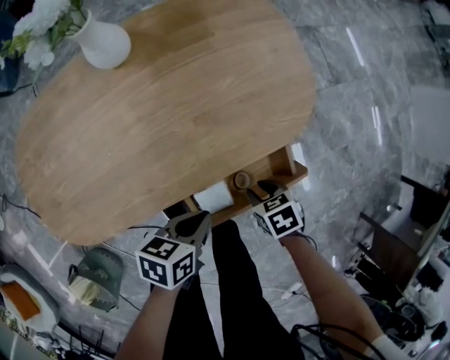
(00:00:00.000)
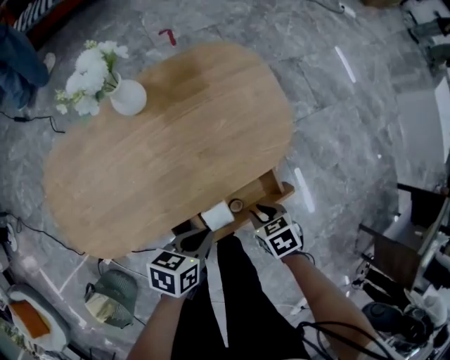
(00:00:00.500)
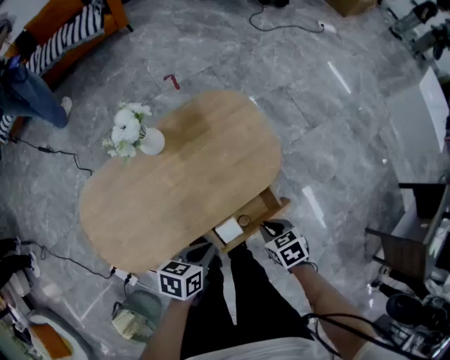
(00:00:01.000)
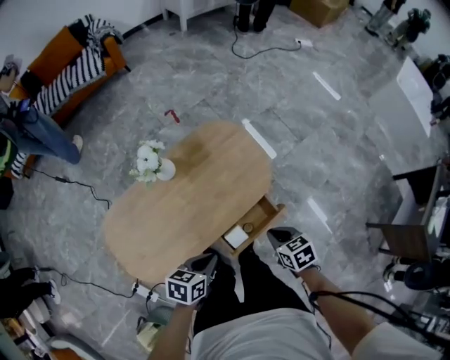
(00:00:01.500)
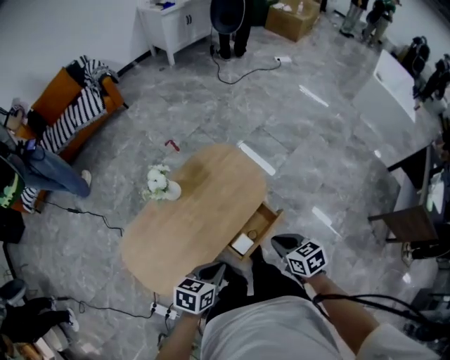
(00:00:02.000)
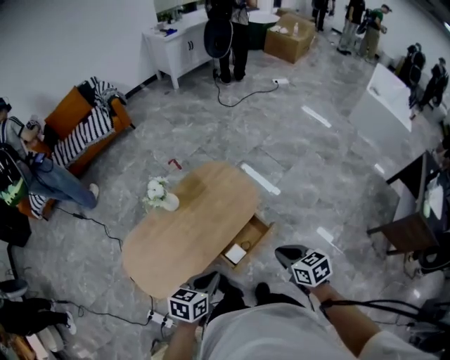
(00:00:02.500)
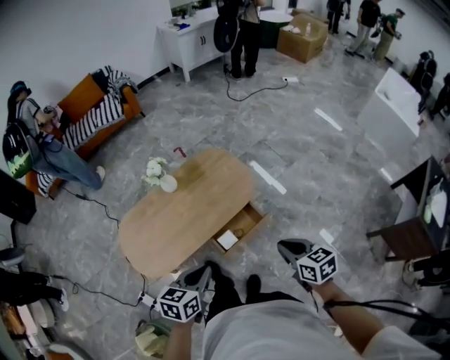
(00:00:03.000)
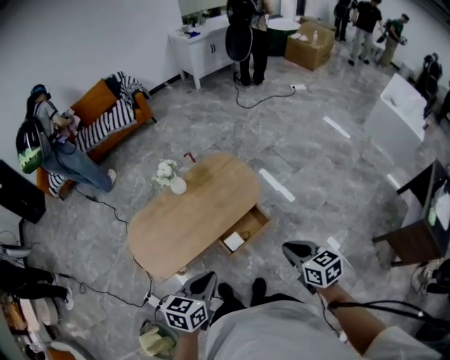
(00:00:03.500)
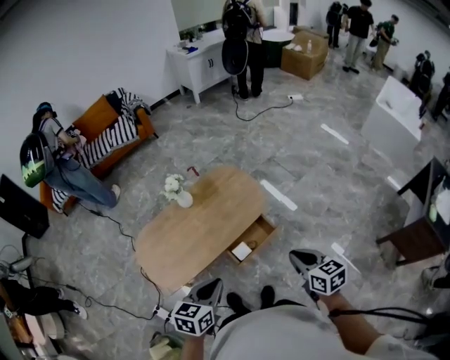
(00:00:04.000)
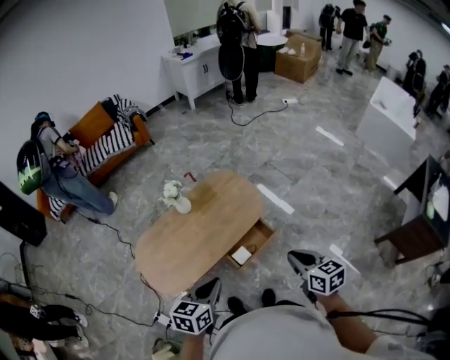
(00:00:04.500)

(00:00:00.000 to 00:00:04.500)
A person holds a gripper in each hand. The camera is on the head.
00:00:00.000 - 00:00:02.000: Both grippers move upward, about 40 cm. The right gripper swivels about 40 degrees, and closes up; the left gripper turns by roughly 30 degrees.
00:00:02.000 - 00:00:04.500: The right gripper moves upward, backward and to the right, about 20 cm. Meanwhile the left gripper travels backward and upward by roughly 20 cm, and turns by roughly 20 degrees.

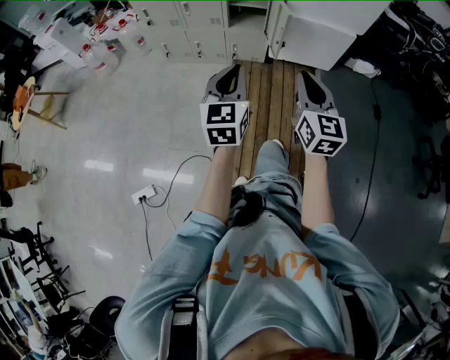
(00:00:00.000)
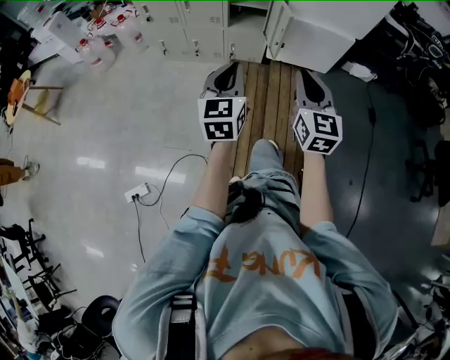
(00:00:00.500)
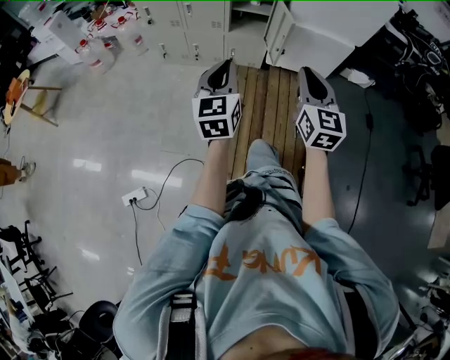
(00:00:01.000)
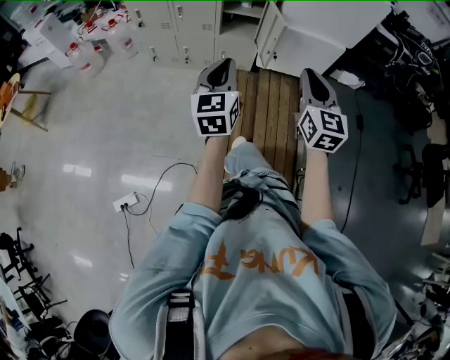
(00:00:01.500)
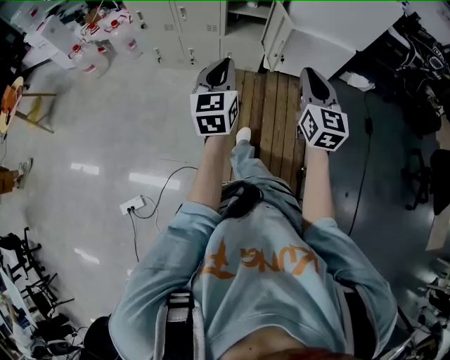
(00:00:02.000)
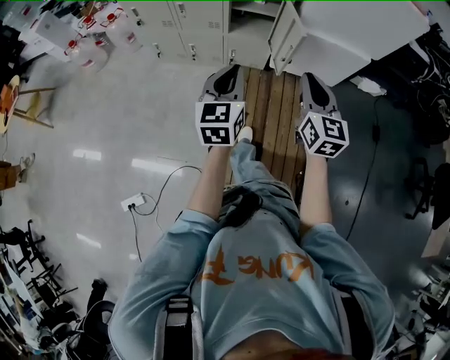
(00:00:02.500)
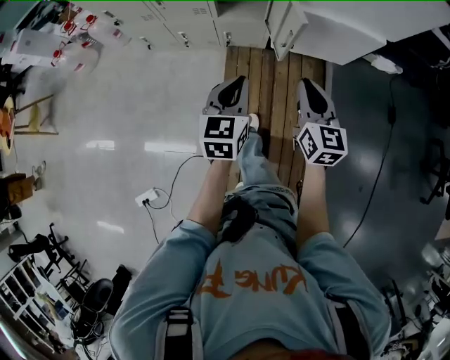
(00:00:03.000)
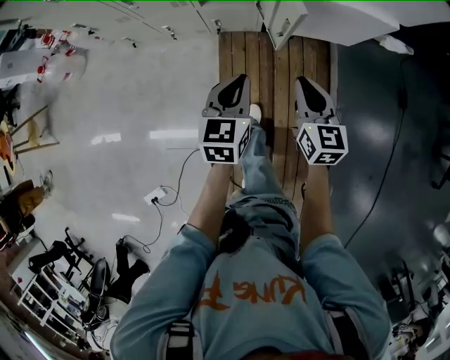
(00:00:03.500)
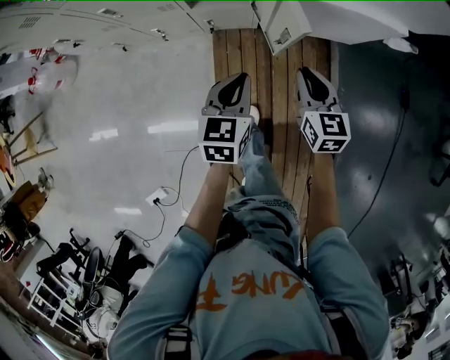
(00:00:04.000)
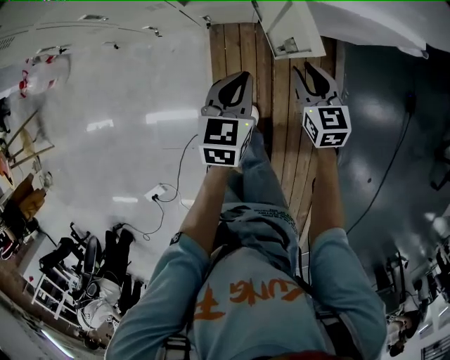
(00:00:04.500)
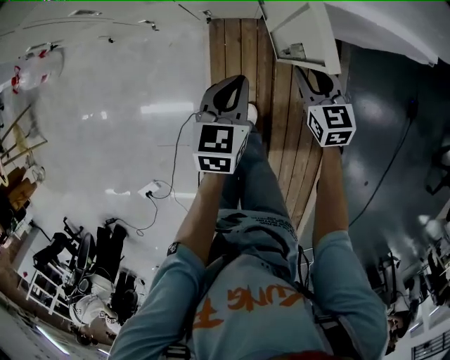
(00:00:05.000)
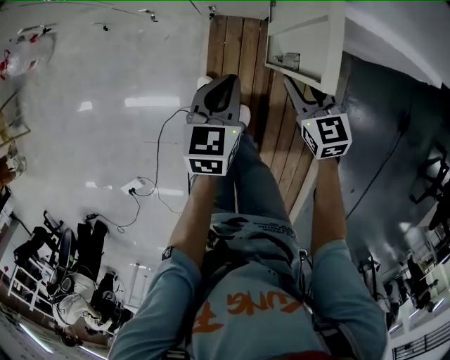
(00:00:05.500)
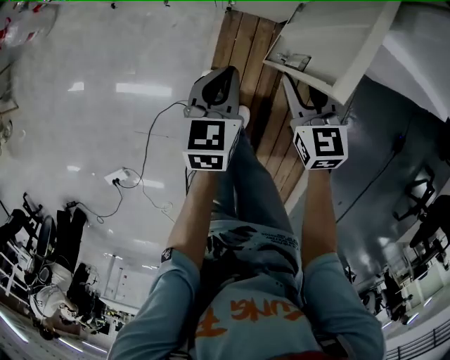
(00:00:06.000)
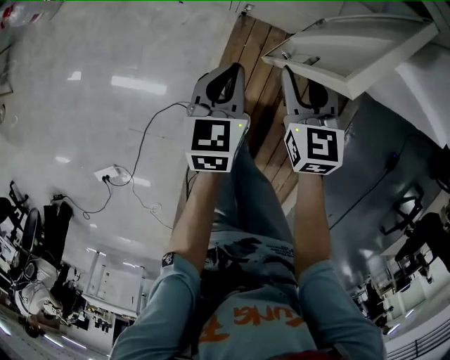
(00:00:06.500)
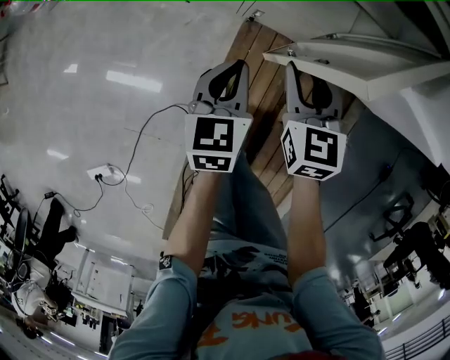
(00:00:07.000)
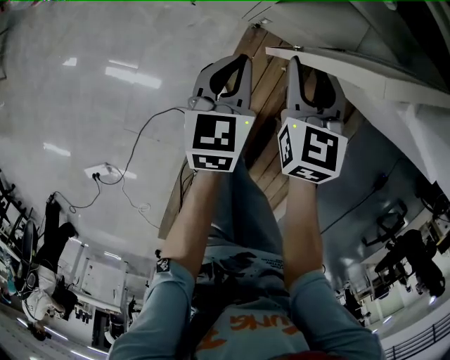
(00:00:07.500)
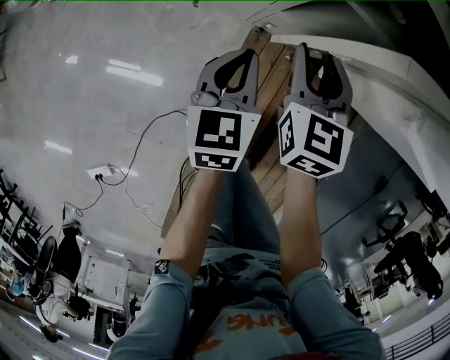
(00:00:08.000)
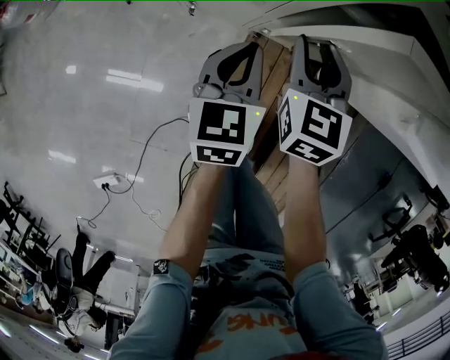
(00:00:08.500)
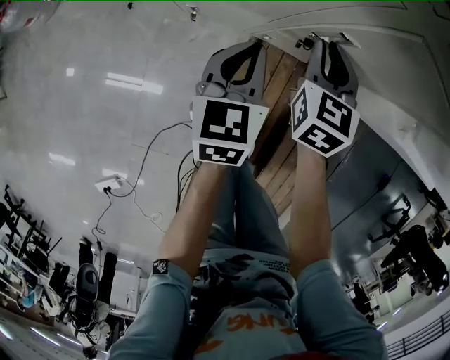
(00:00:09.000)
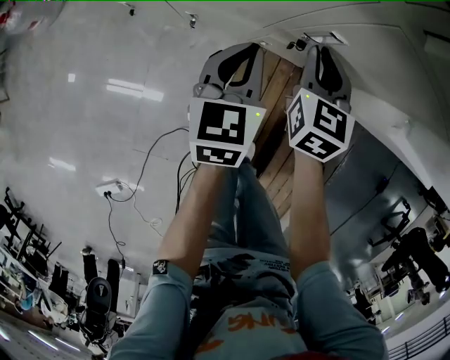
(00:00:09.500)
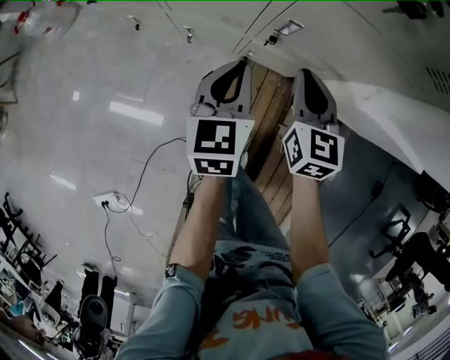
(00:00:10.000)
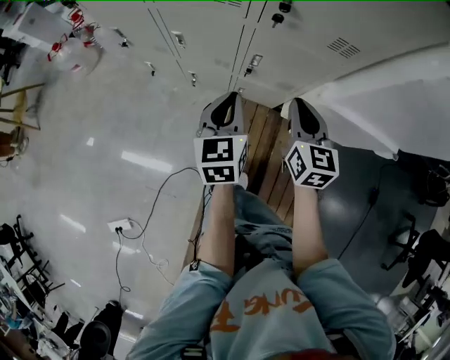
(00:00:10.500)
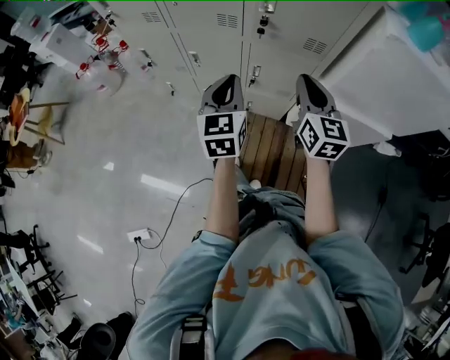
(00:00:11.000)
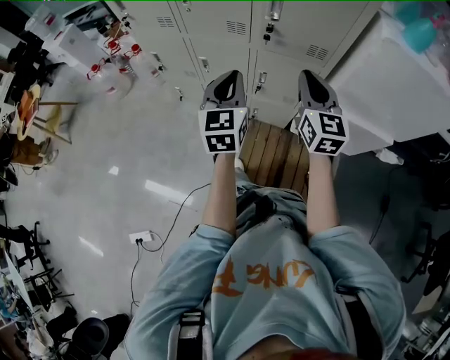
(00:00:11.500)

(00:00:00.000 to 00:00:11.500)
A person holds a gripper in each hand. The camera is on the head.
00:00:00.000 - 00:00:02.000: The left gripper heads forward and to the left, covering about 10 cm. The right gripper goes about 10 cm forward.
00:00:02.000 - 00:00:04.000: Both grippers travel together forward and downward, about 40 cm. The right gripper changes its angle by some 30 degrees. The left gripper swivels about 30 degrees.
00:00:04.000 - 00:00:06.000: The left gripper travels downward, to the left and forward by some 20 cm; the right gripper goes roughly 20 cm to the left, downward and forward, rotates some 20 degrees, and opens.
00:00:06.000 - 00:00:07.500: Both grippers travel together forward and to the left, some 15 cm.
00:00:07.500 - 00:00:09.500: Both grippers move forward, roughly 10 cm. The right gripper closes.
00:00:09.500 - 00:00:11.500: Both grippers move upward and backward, approximately 50 cm. The left gripper swivels roughly 30 degrees. The right gripper tilts its fingers about 30 degrees upward.

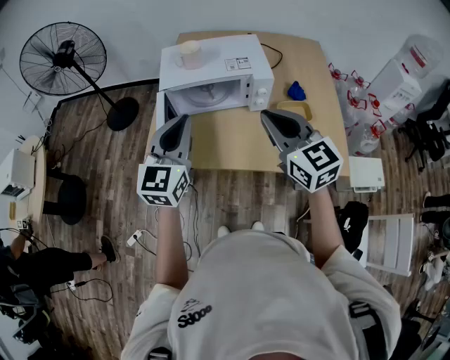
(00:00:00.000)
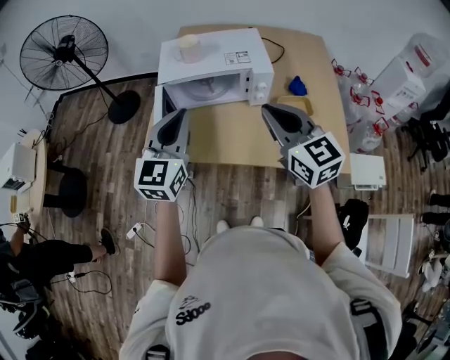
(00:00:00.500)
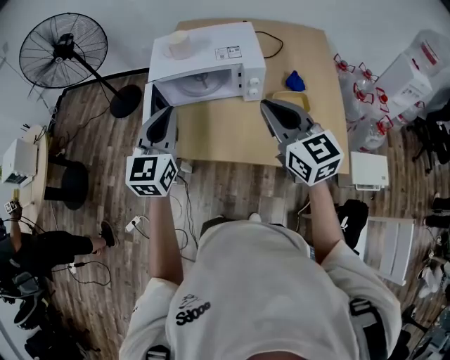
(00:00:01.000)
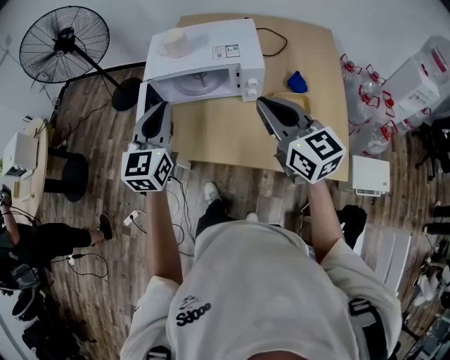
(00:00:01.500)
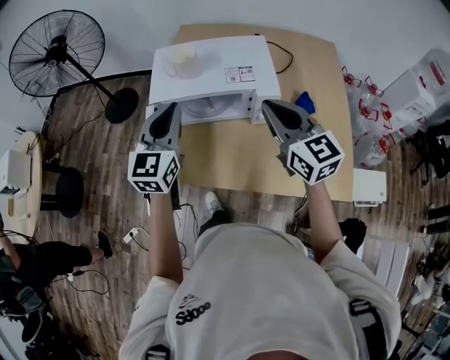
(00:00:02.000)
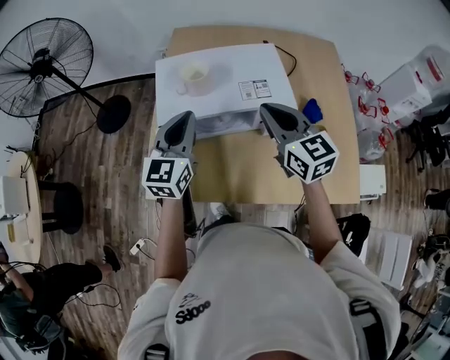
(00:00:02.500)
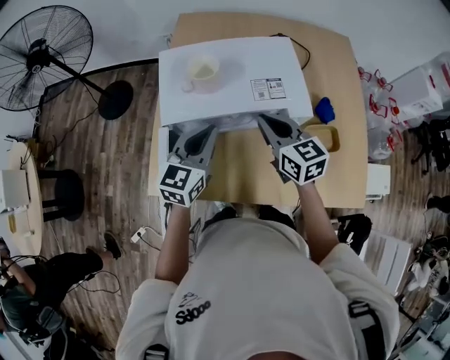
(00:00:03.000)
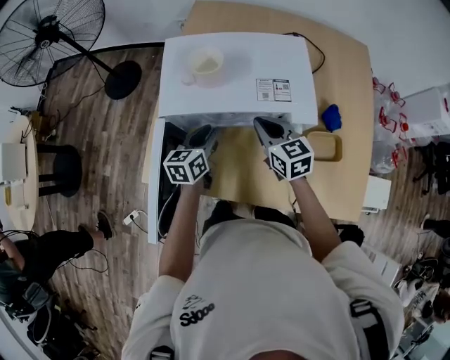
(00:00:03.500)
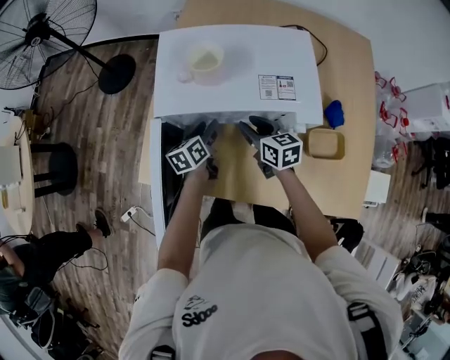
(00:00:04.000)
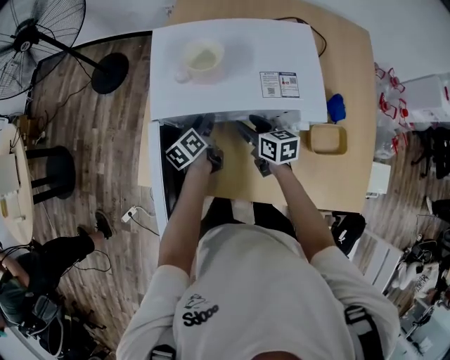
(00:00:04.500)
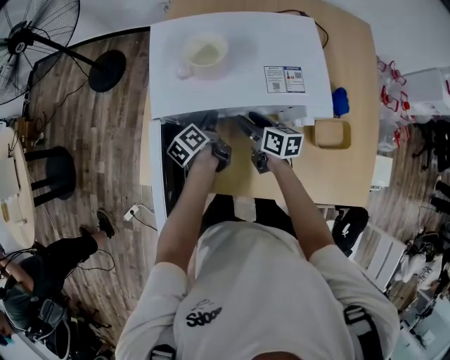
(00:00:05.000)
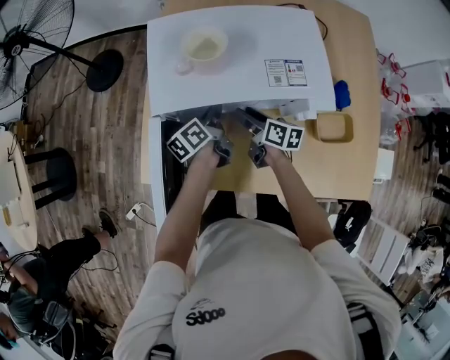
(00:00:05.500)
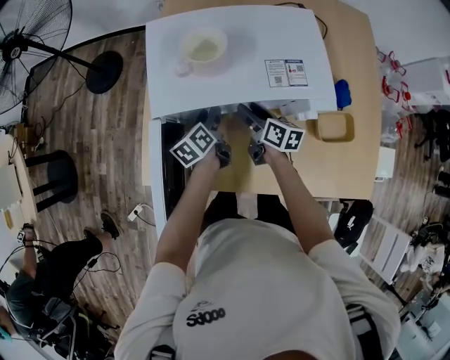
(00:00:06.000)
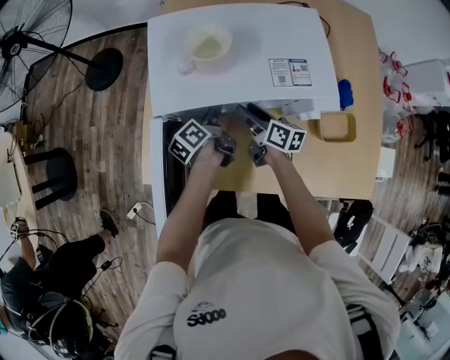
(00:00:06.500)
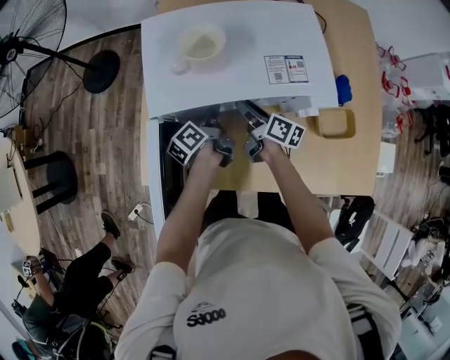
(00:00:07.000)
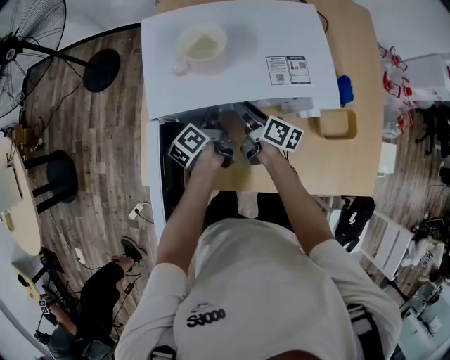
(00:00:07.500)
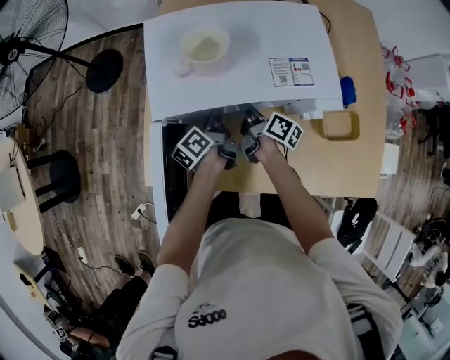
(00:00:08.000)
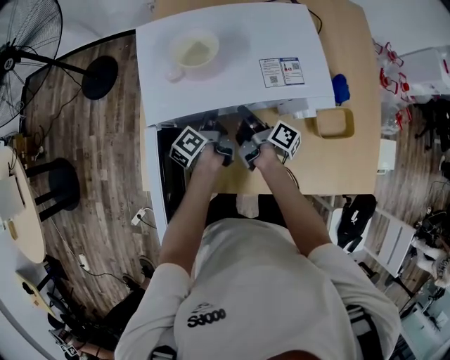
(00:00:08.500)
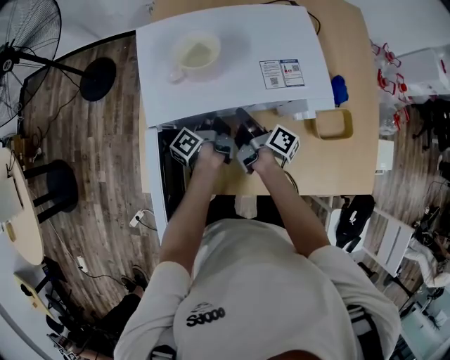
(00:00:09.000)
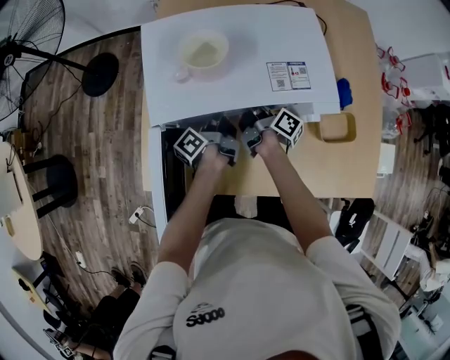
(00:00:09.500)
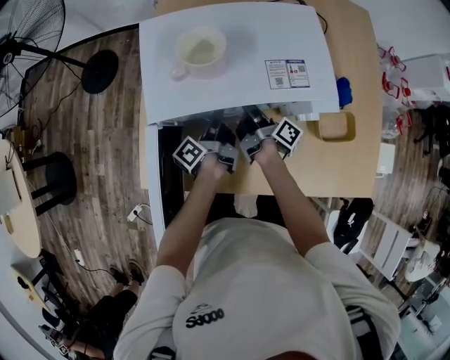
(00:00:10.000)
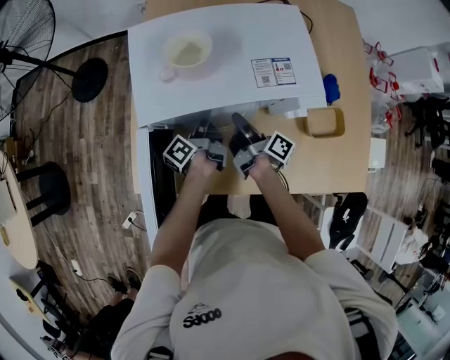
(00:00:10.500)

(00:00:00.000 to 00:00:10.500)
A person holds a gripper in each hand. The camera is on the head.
00:00:00.000 - 00:00:02.000: Both grippers move forward, some 15 cm.
00:00:02.000 - 00:00:04.000: The two grippers go some 35 cm downward and forward. The right gripper changes its angle by some 30 degrees, and opens its fingers, while the left gripper rolls counterclockwise, seen from behind, by approximately 50 degrees, and opens up.
00:00:04.000 - 00:00:06.500: The right gripper heads downward, covering about 5 cm, and turns by approximately 30 degrees; the left gripper changes its angle by some 30 degrees, and closes, then opens again.
00:00:06.500 - 00:00:08.500: The left gripper closes and opens again; the right gripper turns by approximately 40 degrees, and closes up.
00:00:08.500 - 00:00:10.500: The grippers stay close to where they were, moving slightly.
